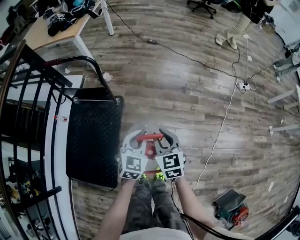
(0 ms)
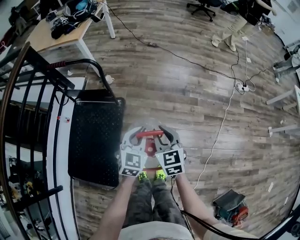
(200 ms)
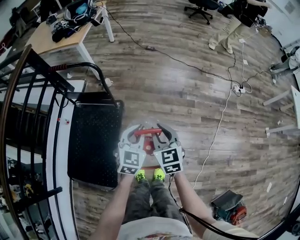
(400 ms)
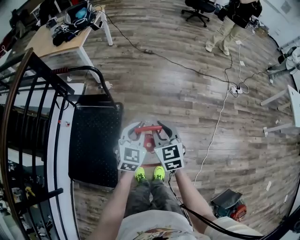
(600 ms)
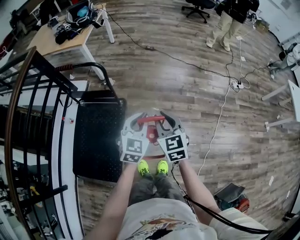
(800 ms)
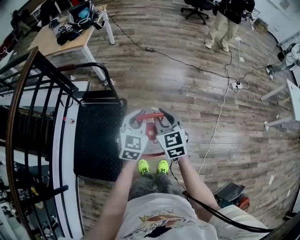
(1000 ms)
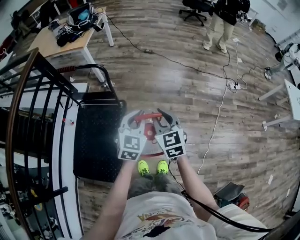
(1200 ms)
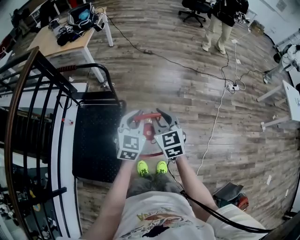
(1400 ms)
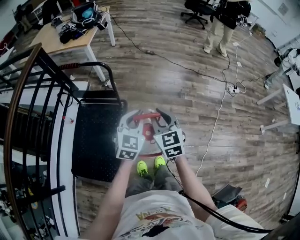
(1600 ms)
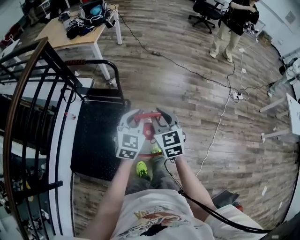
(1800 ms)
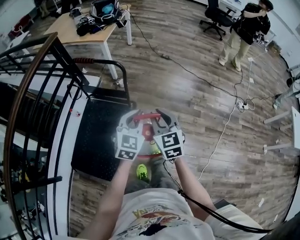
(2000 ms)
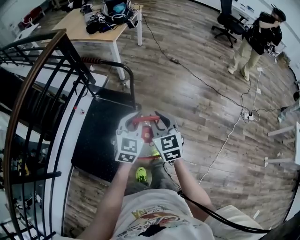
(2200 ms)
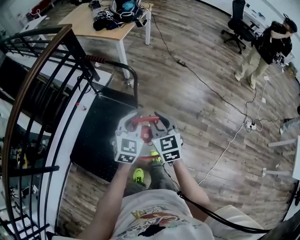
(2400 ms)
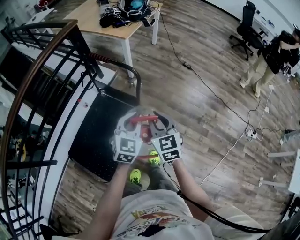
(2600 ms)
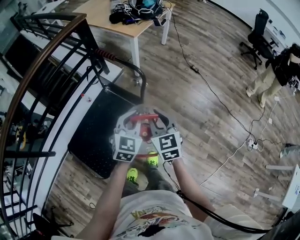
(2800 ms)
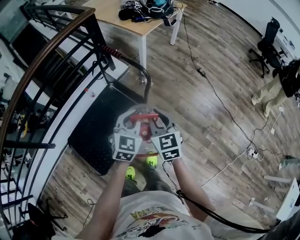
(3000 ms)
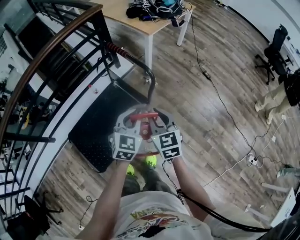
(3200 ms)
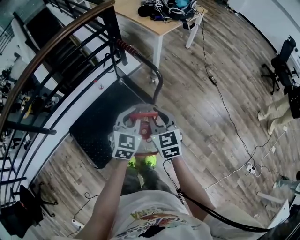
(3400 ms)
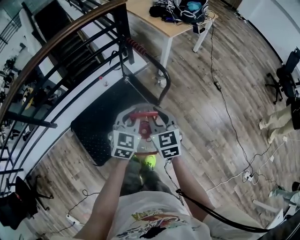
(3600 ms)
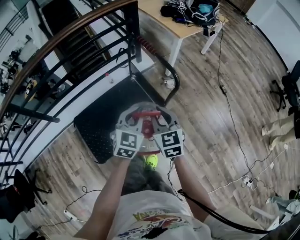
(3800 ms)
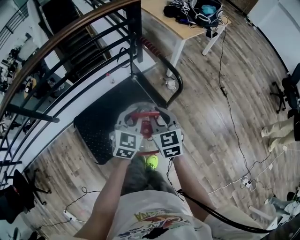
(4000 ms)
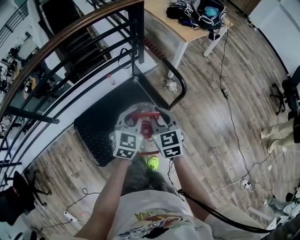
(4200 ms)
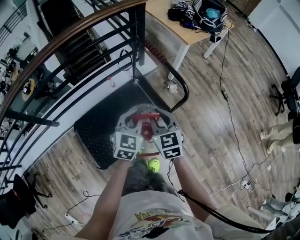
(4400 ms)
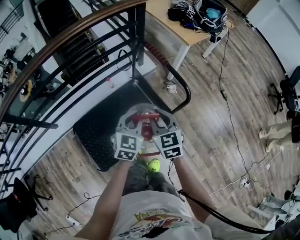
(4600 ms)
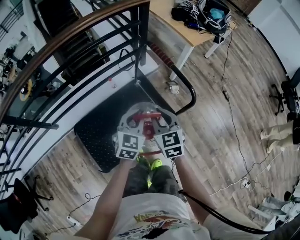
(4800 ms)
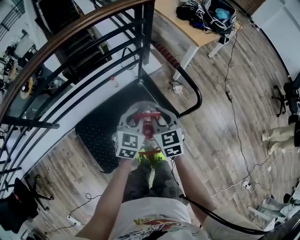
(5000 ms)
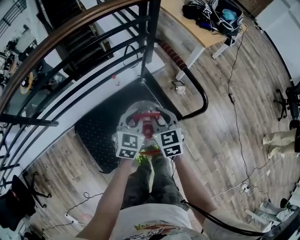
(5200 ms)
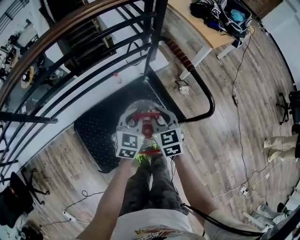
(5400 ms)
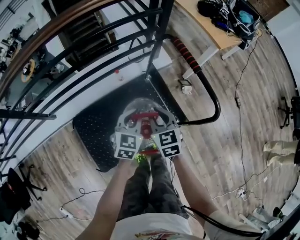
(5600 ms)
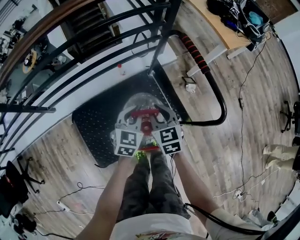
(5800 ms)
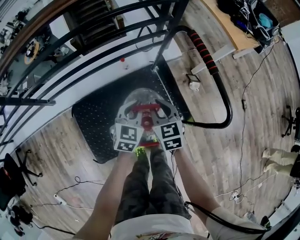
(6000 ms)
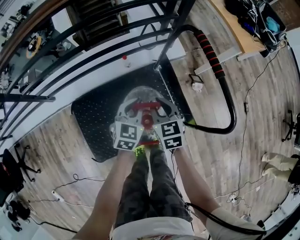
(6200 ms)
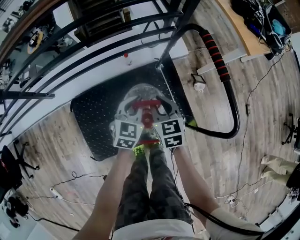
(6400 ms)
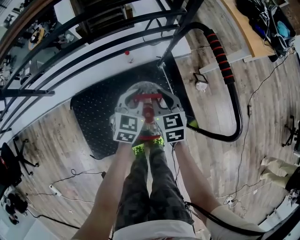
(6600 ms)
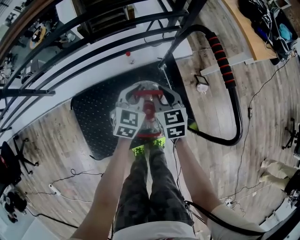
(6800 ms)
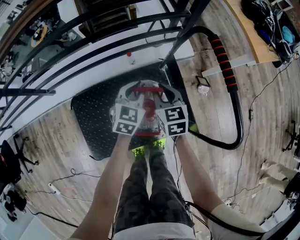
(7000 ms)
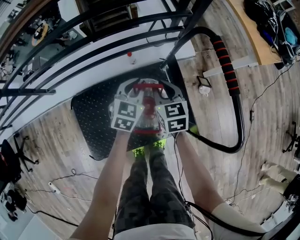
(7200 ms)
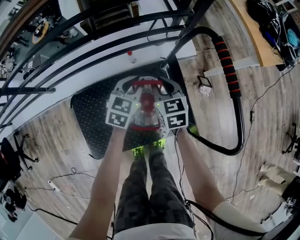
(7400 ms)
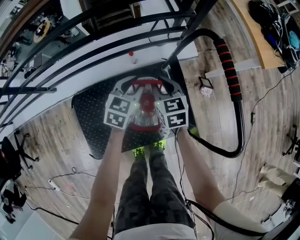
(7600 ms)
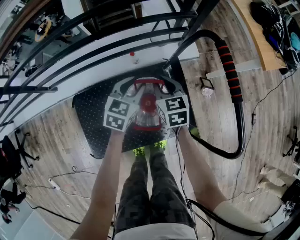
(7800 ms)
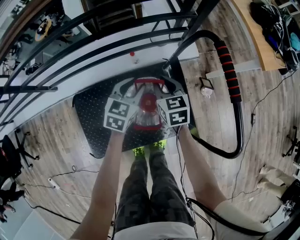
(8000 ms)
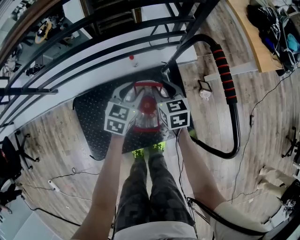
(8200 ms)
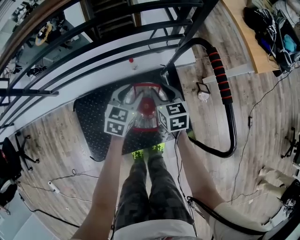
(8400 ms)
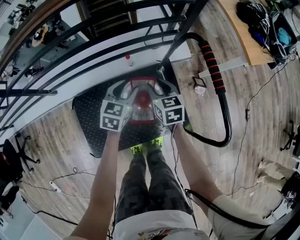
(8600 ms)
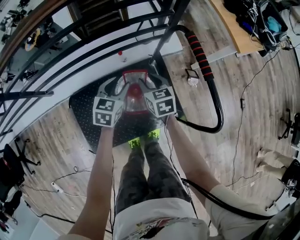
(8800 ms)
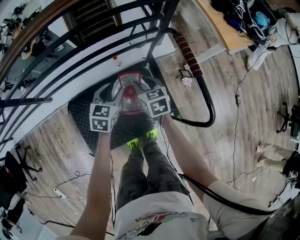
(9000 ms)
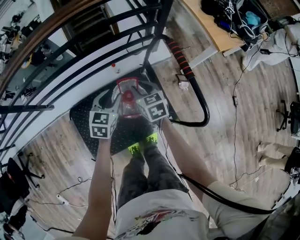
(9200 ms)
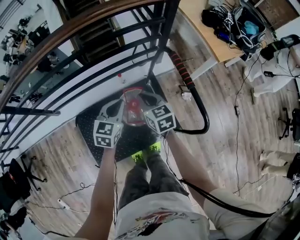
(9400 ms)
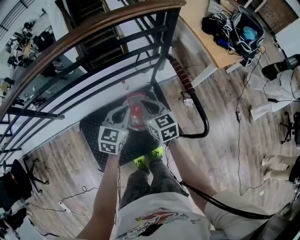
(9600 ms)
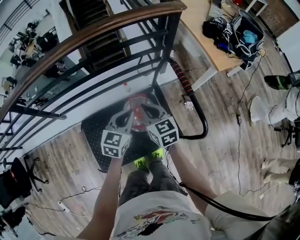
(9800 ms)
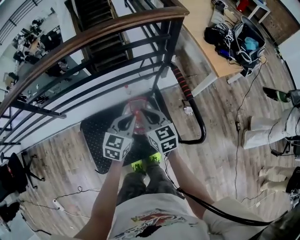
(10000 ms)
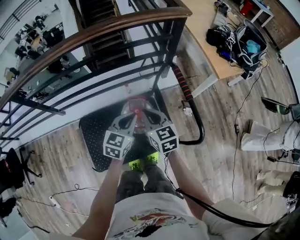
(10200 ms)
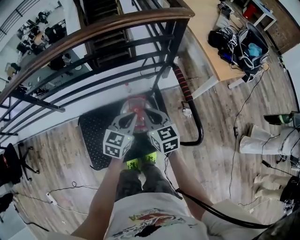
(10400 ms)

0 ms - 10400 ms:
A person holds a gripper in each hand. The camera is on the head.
0 ms - 1400 ms: Both grippers travel together upward, about 20 cm.
1400 ms - 3000 ms: The left gripper changes place by approximately 20 cm, and changes its angle by some 30 degrees, while the right gripper shifts by approximately 20 cm, and turns by approximately 30 degrees.
3000 ms - 4400 ms: Both grippers travel together to the left and forward, about 20 cm.
4400 ms - 6000 ms: Both grippers travel together downward, forward and to the left, about 30 cm.
6000 ms - 7400 ms: Both grippers travel together forward and downward, roughly 15 cm.
7400 ms - 9000 ms: The right gripper goes some 10 cm upward; the left gripper travels upward and backward by about 10 cm, and opens.
9000 ms - 10400 ms: The left gripper is displaced upward, backward and to the right by roughly 20 cm, and closes its fingers, while the right gripper shifts some 20 cm upward and backward, and closes up.

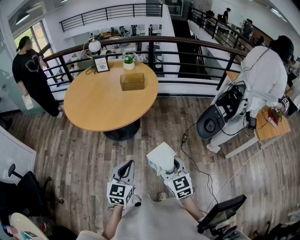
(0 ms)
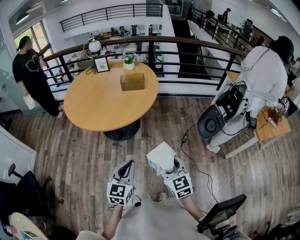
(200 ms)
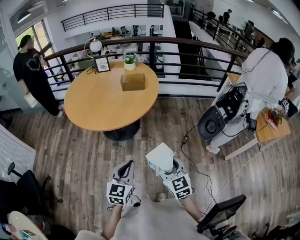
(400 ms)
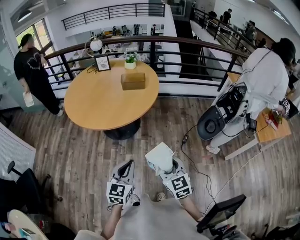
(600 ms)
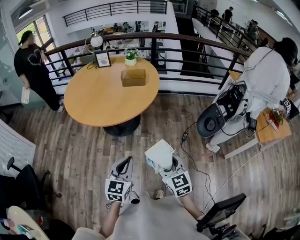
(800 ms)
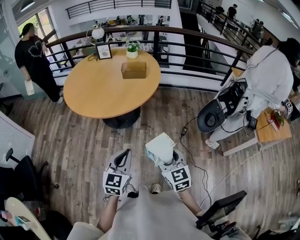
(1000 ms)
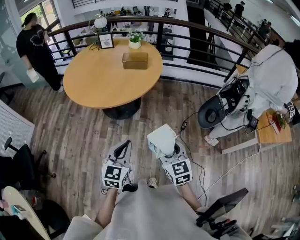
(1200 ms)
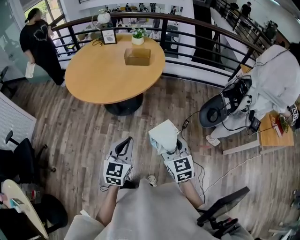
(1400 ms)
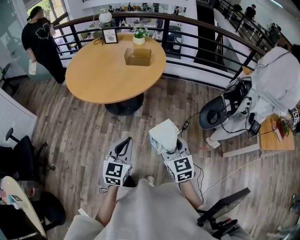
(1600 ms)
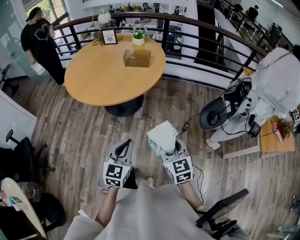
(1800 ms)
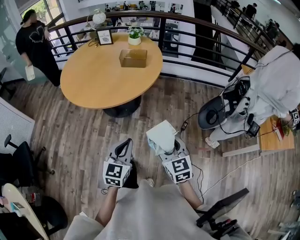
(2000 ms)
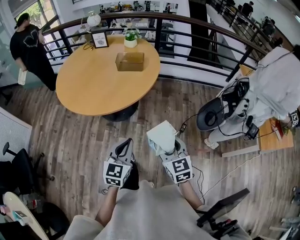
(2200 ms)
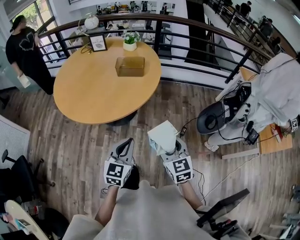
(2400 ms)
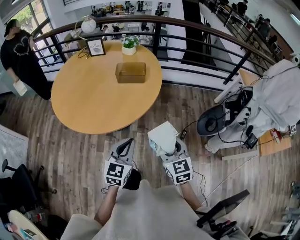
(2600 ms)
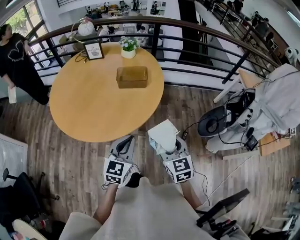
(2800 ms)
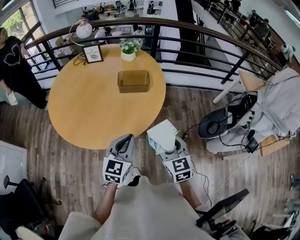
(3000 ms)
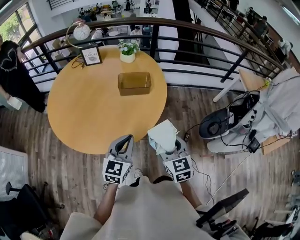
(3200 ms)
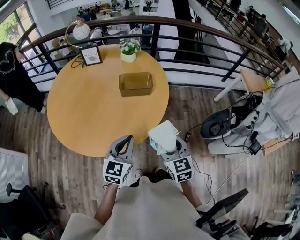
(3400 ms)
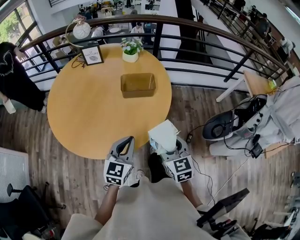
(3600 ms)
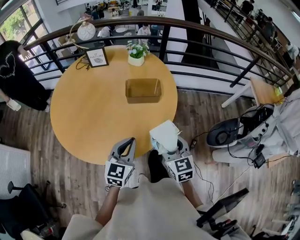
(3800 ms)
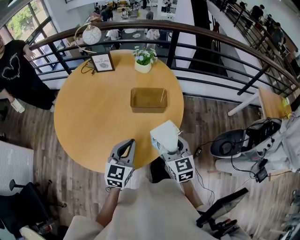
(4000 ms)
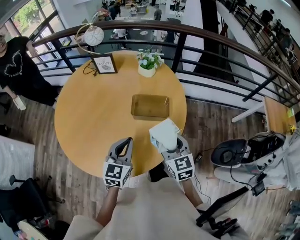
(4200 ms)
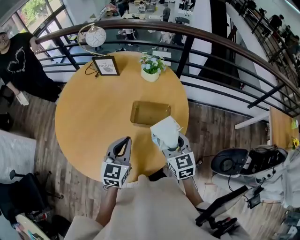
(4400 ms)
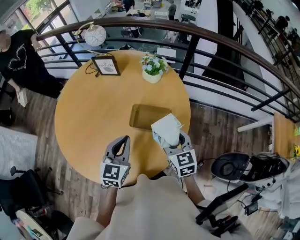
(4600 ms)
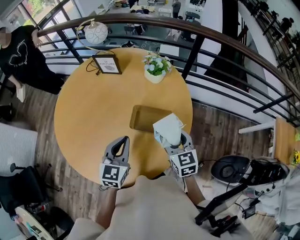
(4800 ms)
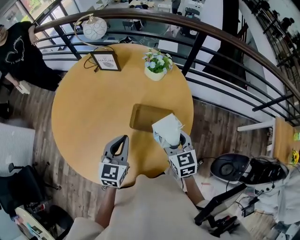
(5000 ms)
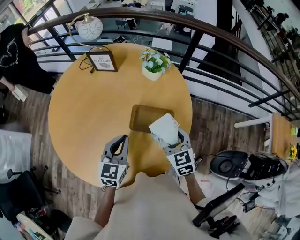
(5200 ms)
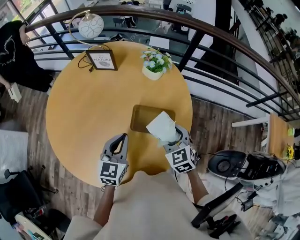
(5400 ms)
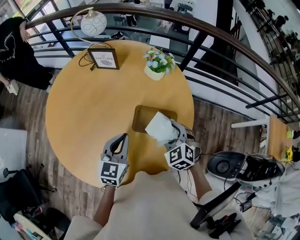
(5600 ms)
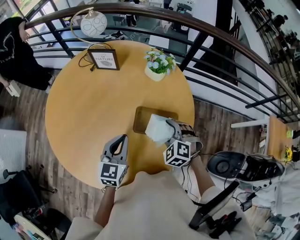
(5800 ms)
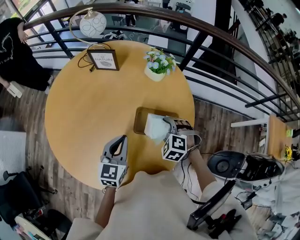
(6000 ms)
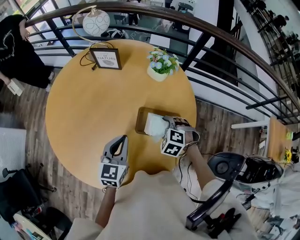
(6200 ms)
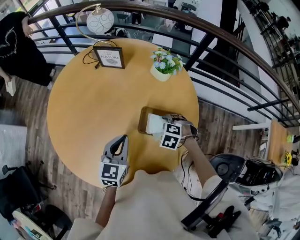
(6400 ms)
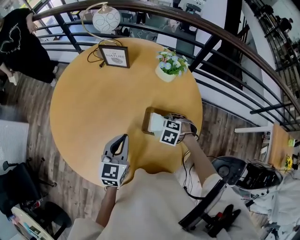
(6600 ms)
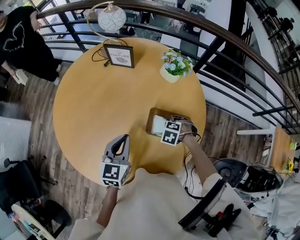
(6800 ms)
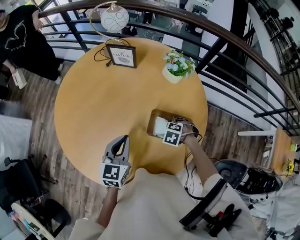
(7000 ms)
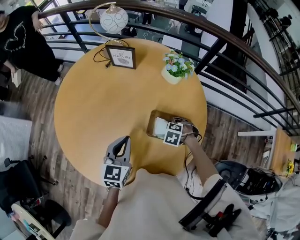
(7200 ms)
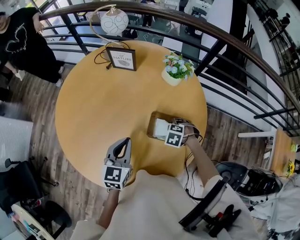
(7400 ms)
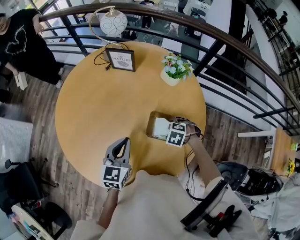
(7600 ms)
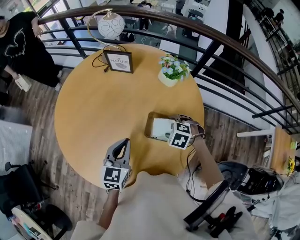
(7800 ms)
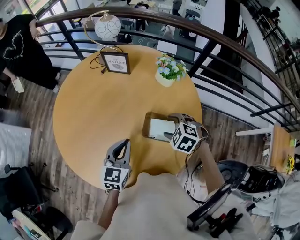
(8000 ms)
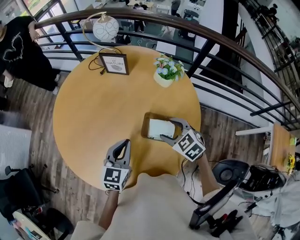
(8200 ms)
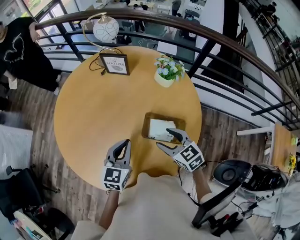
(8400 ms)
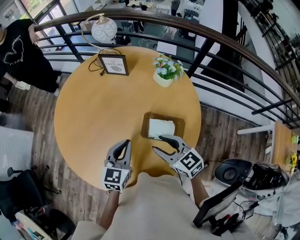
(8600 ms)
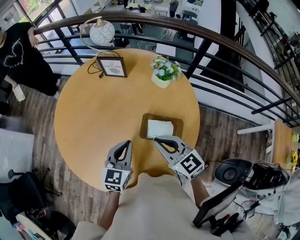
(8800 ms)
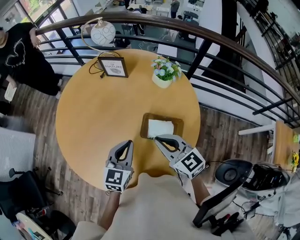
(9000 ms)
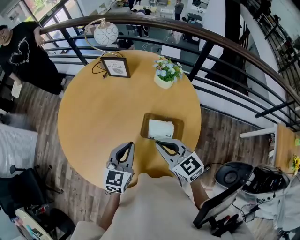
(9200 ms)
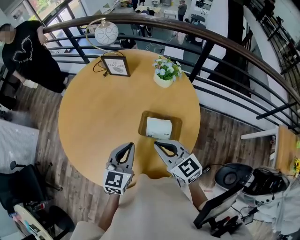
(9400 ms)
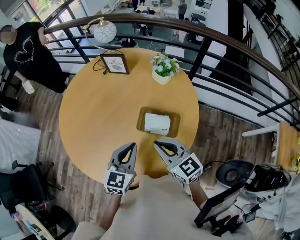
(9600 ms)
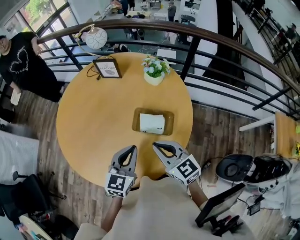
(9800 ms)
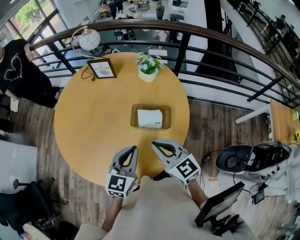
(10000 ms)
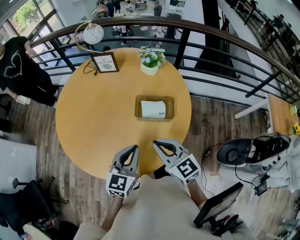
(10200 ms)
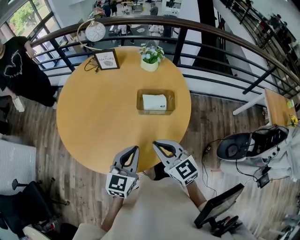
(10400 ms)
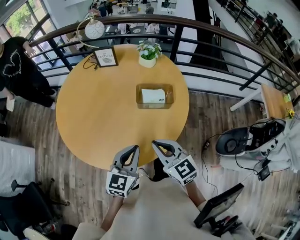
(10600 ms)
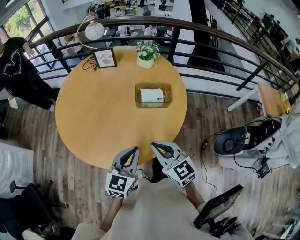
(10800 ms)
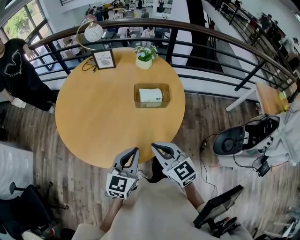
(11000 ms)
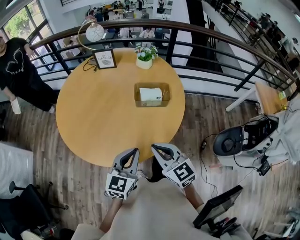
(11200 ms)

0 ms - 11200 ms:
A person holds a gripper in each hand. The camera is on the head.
0 ms - 1600 ms: The grippers both shift to the right by some 5 cm.
1600 ms - 3200 ms: The grippers both shift forward by about 30 cm.
3200 ms - 4800 ms: The grippers both shift forward by some 30 cm. The left gripper changes its angle by about 20 degrees.
4800 ms - 6400 ms: The left gripper ends up approximately 10 cm from where it was. The right gripper heads downward, covering some 15 cm, and points its fingers some 50 degrees further downward.
6400 ms - 8000 ms: The right gripper moves upward, approximately 10 cm.
8000 ms - 9600 ms: The left gripper travels backward and to the right by roughly 10 cm. The right gripper travels upward and backward by about 15 cm, angles its fingers upward, by about 50 degrees, and closes.
9600 ms - 11200 ms: Both grippers move backward, about 15 cm.

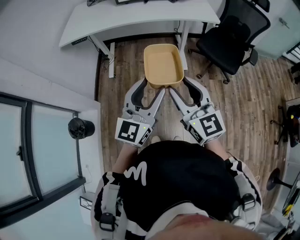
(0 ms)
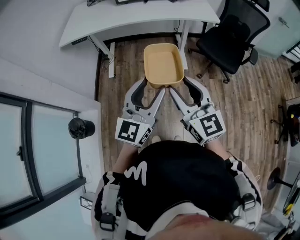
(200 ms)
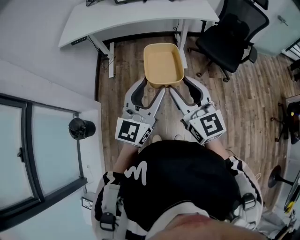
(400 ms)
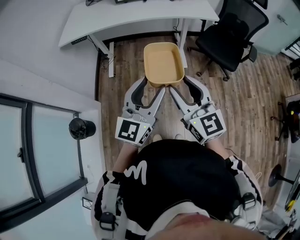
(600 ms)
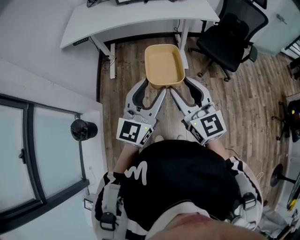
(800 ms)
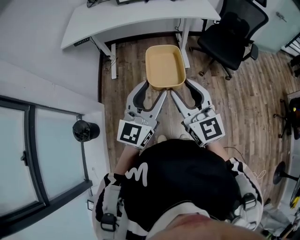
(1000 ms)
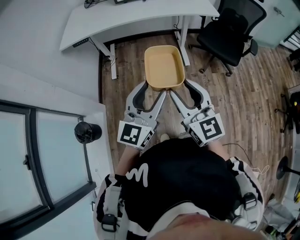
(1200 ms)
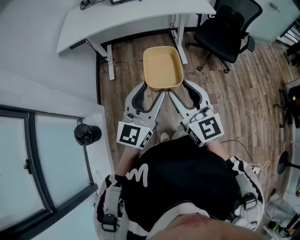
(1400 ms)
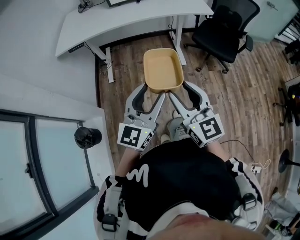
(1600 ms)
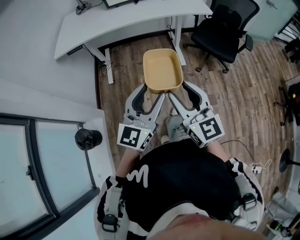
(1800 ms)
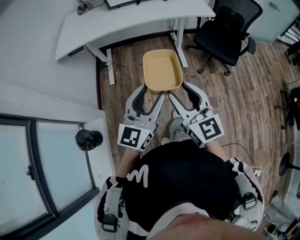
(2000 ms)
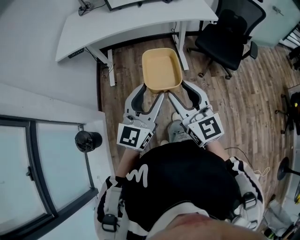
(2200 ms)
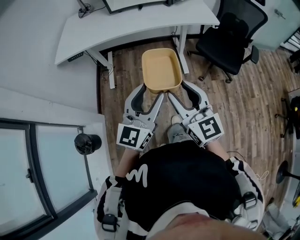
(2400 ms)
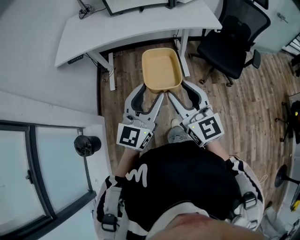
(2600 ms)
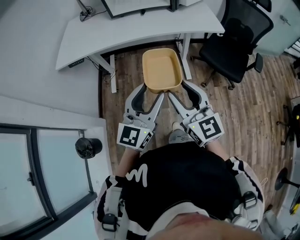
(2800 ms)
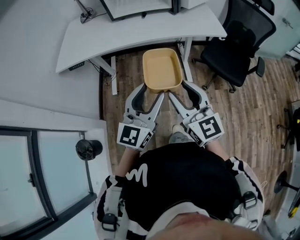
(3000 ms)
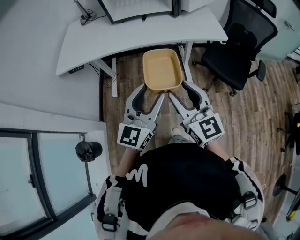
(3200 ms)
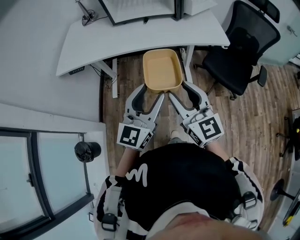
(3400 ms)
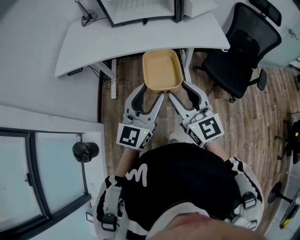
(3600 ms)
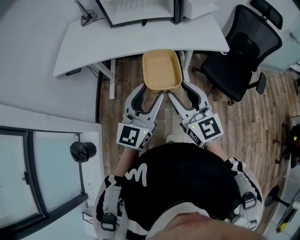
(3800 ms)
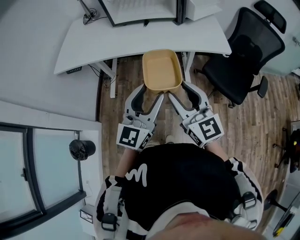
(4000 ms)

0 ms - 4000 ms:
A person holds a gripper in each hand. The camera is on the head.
0 ms - 1400 ms: The grippers both shift to the left by approximately 5 cm.
1400 ms - 2600 ms: Both grippers move forward, about 15 cm.
2600 ms - 4000 ms: The two grippers go approximately 15 cm forward.
